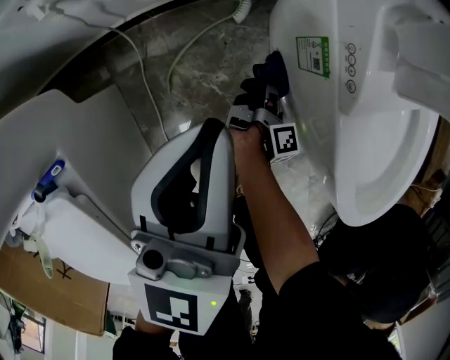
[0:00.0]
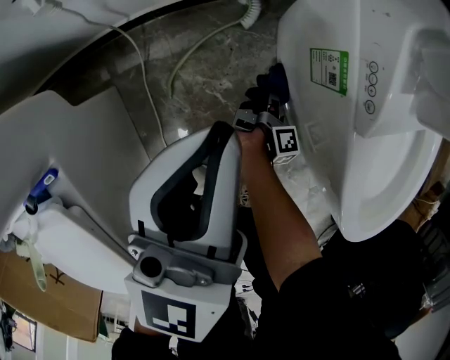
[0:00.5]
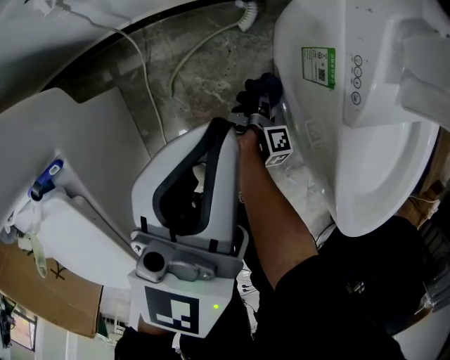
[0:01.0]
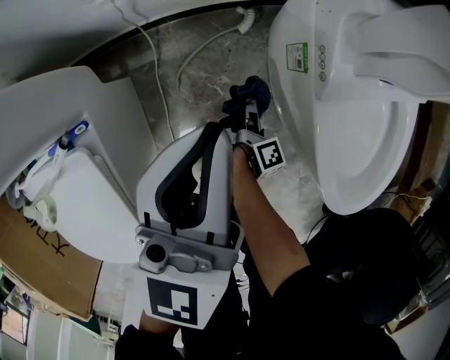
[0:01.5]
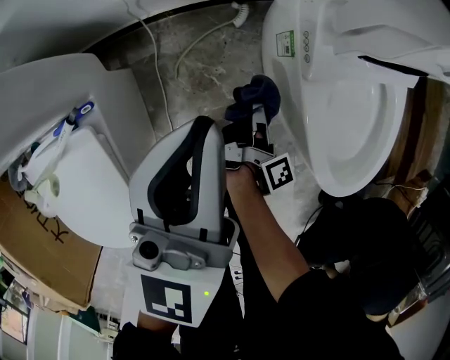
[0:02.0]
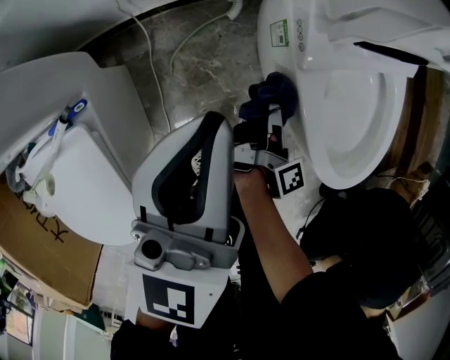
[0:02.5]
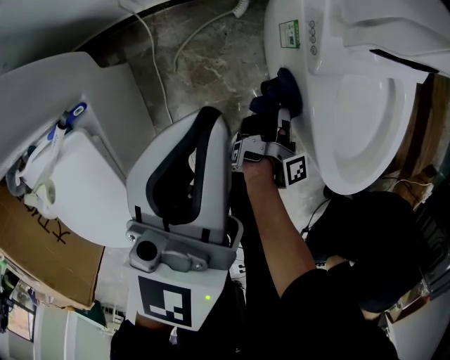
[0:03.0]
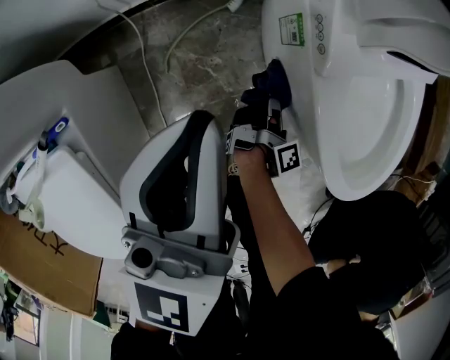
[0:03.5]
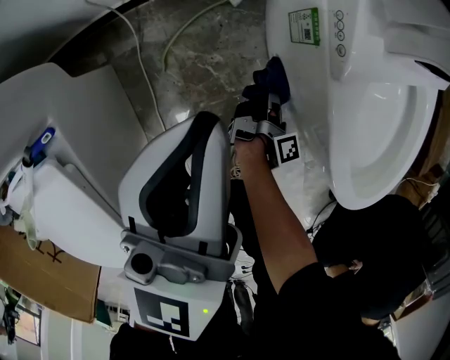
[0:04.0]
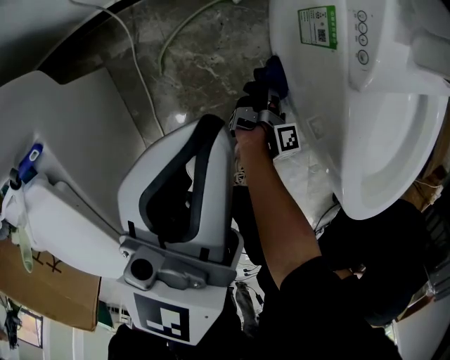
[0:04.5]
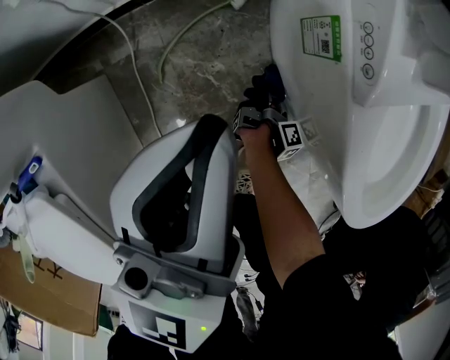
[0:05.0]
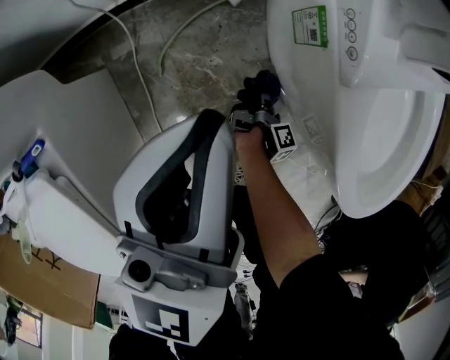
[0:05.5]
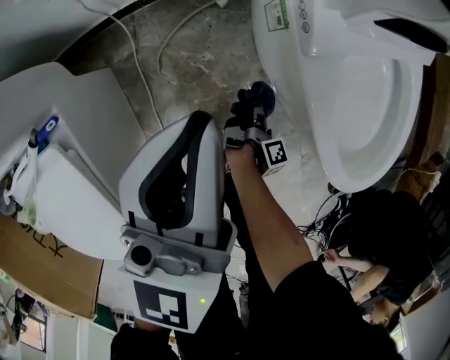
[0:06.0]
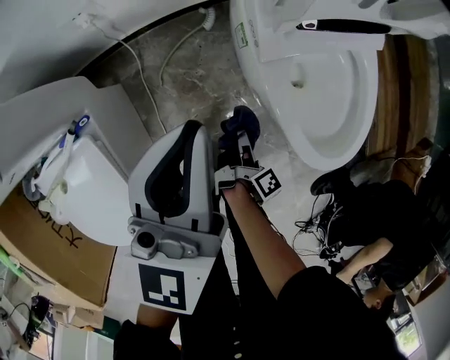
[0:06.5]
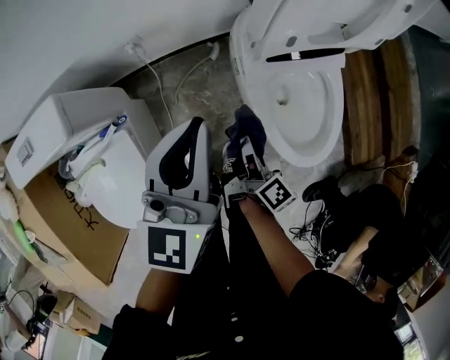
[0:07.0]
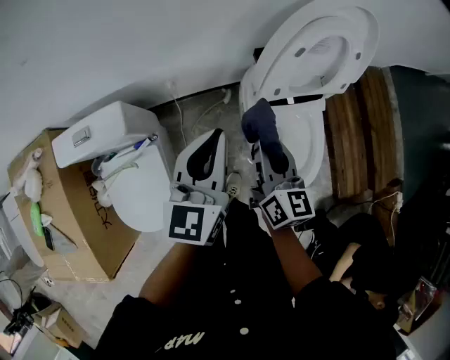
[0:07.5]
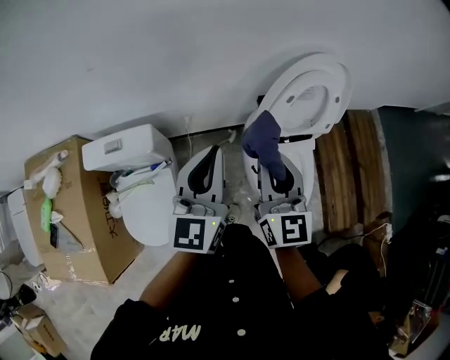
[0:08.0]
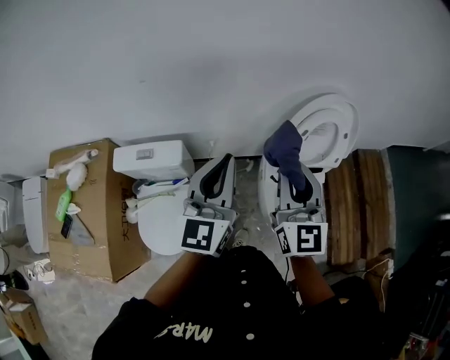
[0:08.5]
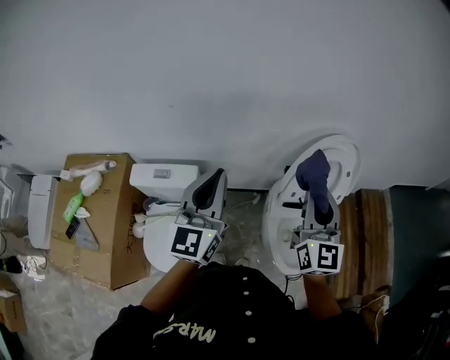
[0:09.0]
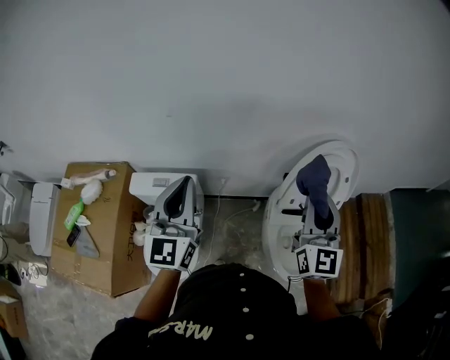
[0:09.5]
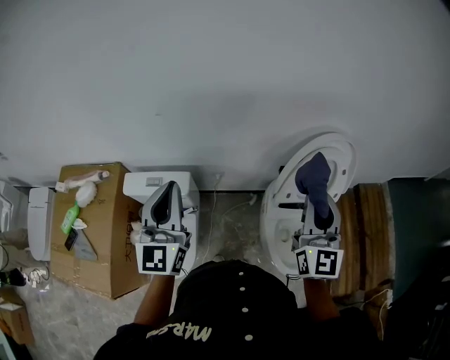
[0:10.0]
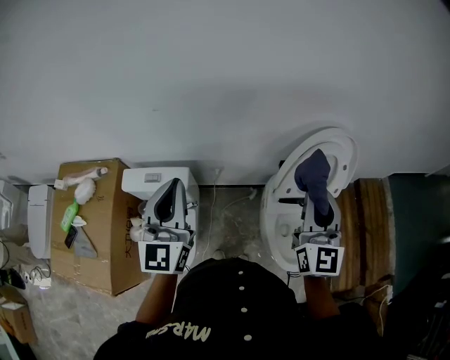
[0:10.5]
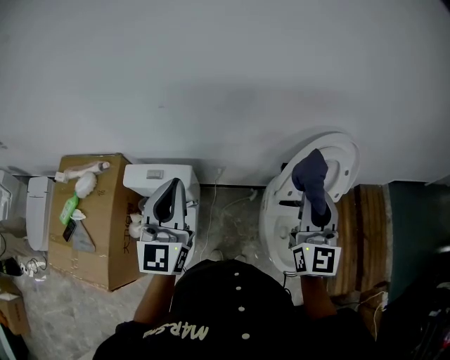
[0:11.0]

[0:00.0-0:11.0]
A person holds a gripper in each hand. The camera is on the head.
0:00.0 to 0:02.0: The left gripper goes some 15 cm upward. The right gripper is displaced upward by roughly 20 cm.
0:02.0 to 0:03.5: The left gripper shifts roughly 5 cm downward, while the right gripper moves downward and to the right, approximately 10 cm.
0:03.5 to 0:05.5: The right gripper goes roughly 15 cm downward, and turns by approximately 20 degrees. Meanwhile the left gripper moves downward, about 5 cm.
0:05.5 to 0:07.5: The right gripper travels upward by approximately 80 cm, and twists about 80 degrees counterclockwise, seen from behind. The left gripper heads upward, covering roughly 40 cm.
0:07.5 to 0:09.0: The right gripper shifts some 35 cm upward, and rotates approximately 30 degrees. Meanwhile the left gripper goes some 30 cm upward and to the left, and rotates roughly 30 degrees.
0:09.0 to 0:11.0: The left gripper travels to the left by approximately 5 cm.

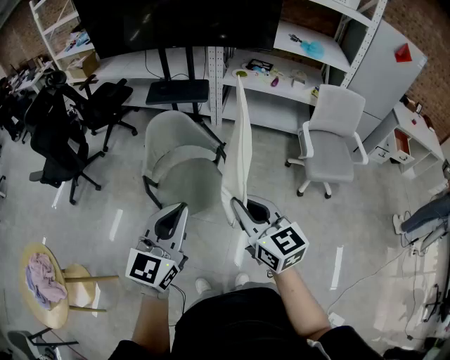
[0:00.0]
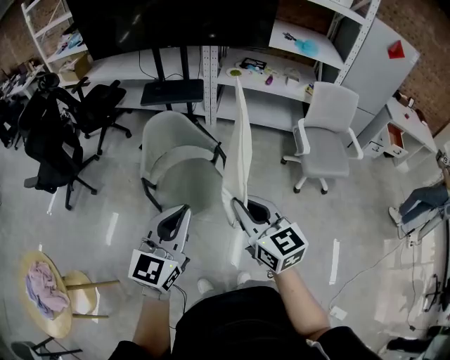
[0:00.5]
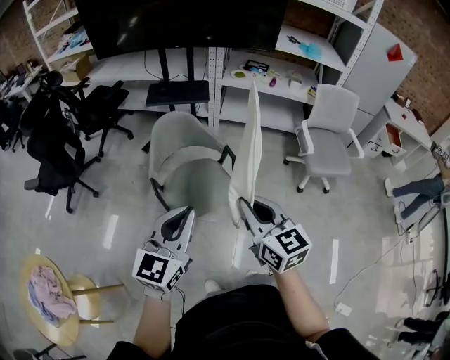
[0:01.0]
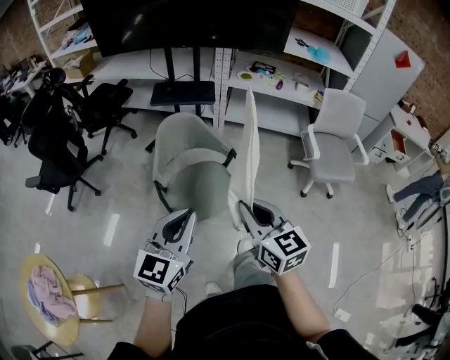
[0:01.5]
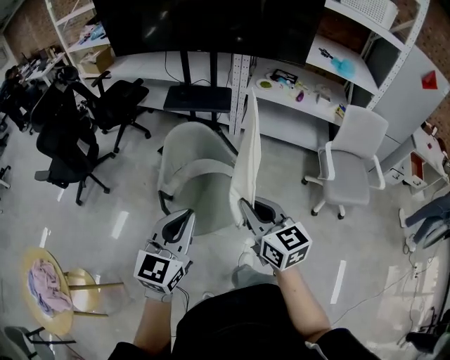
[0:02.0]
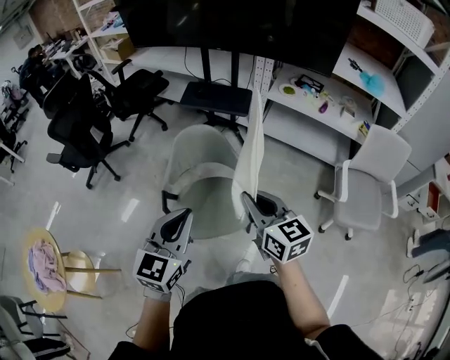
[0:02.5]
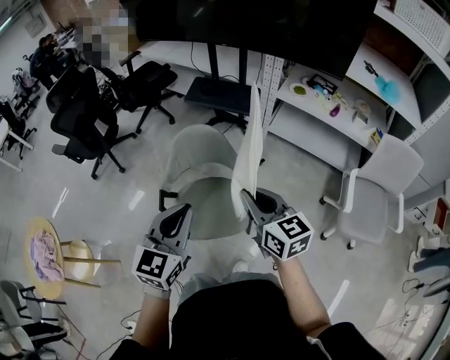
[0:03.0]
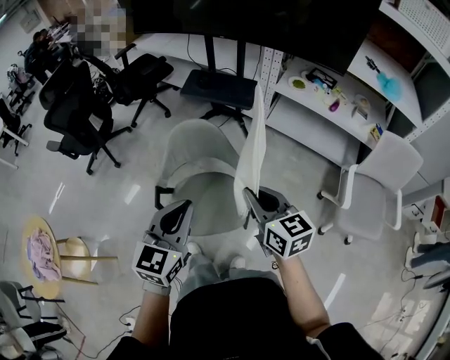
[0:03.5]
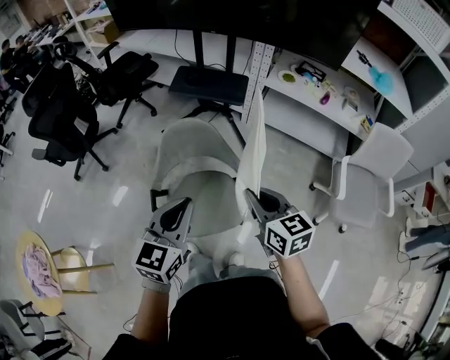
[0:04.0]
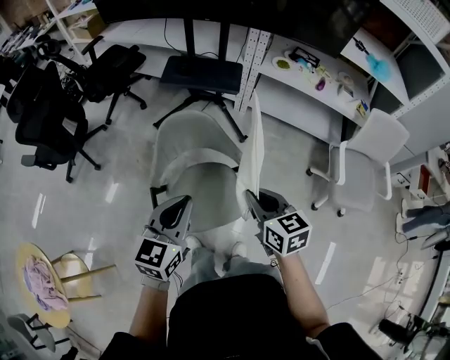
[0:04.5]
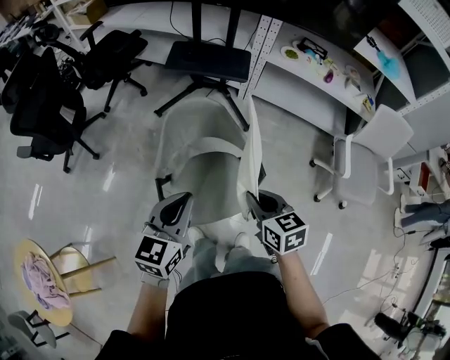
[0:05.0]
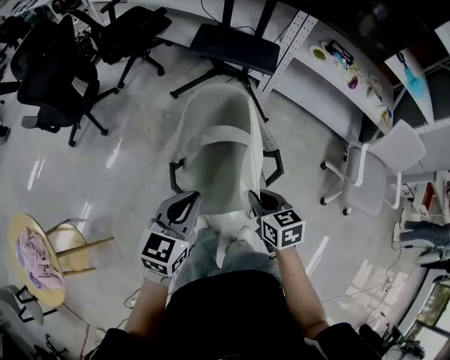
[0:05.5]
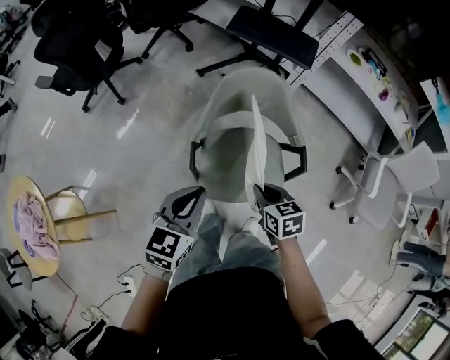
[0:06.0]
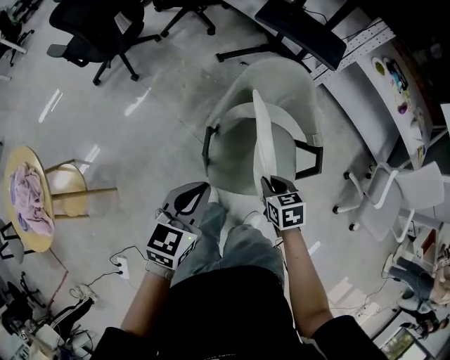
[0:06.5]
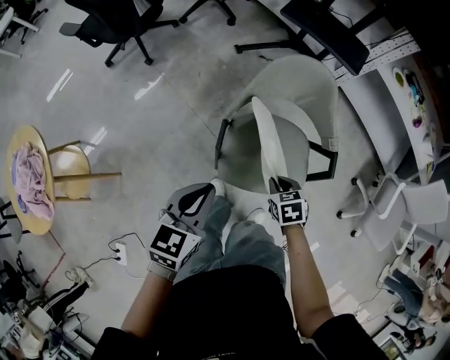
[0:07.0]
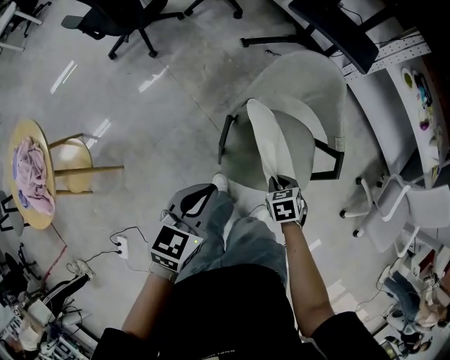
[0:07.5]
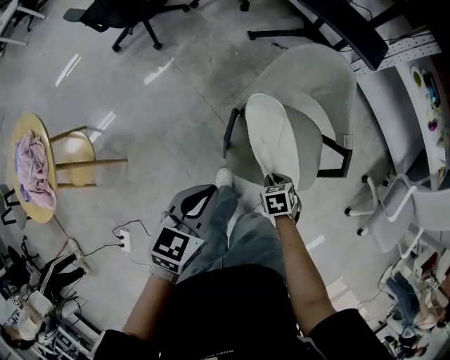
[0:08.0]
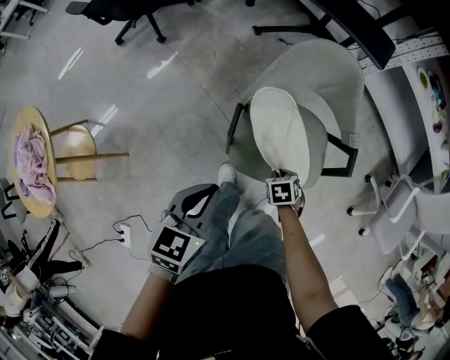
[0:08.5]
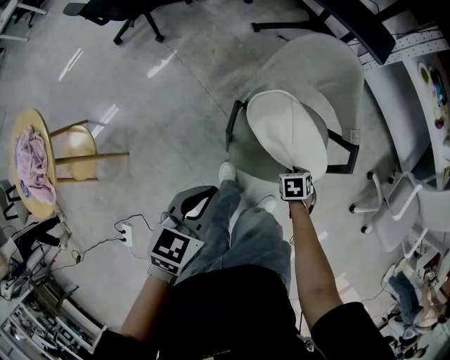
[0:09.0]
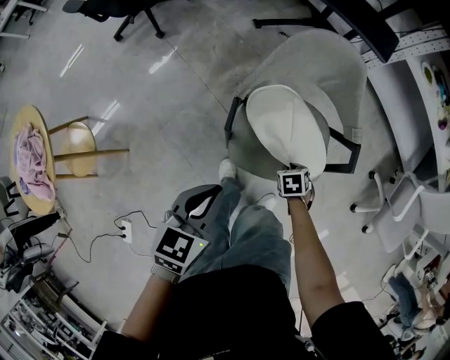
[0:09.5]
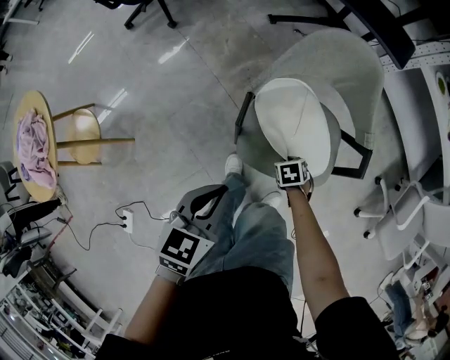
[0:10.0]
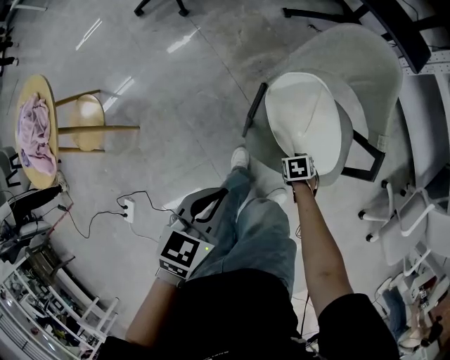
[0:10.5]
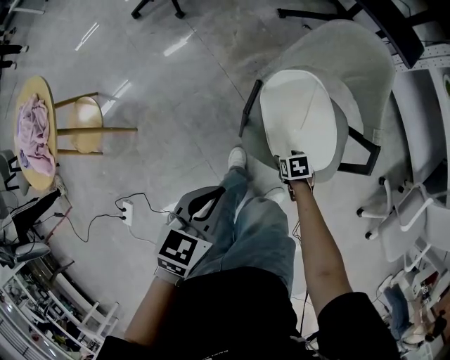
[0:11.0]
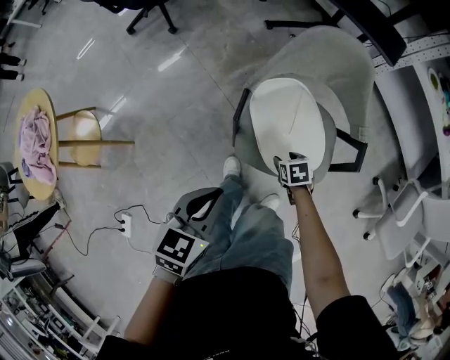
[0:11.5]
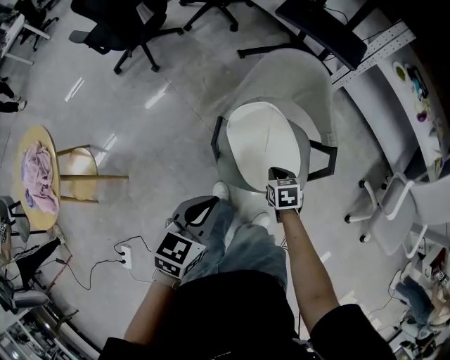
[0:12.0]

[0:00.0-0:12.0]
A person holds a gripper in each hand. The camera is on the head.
0:00.0 to 0:02.0: Both grippers move forward and to the left, roughly 15 cm.
0:02.0 to 0:04.0: The left gripper moves forward, approximately 15 cm; the right gripper goes approximately 15 cm forward and to the right.
0:04.0 to 0:06.0: The right gripper is displaced downward and to the left by roughly 25 cm, and swivels about 30 degrees; the left gripper is displaced to the left and downward by roughly 20 cm.
0:06.0 to 0:08.0: The left gripper changes place by approximately 10 cm. The right gripper is displaced downward by some 20 cm, and swivels some 30 degrees.
0:08.0 to 0:10.0: The right gripper is displaced downward by approximately 10 cm.
0:10.0 to 0:12.0: The left gripper moves approximately 5 cm; the right gripper goes some 15 cm upward, turns by roughly 20 degrees, and opens, then closes once more.

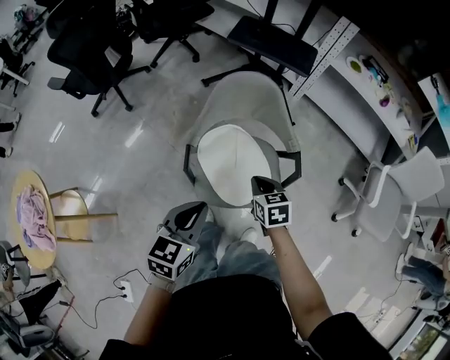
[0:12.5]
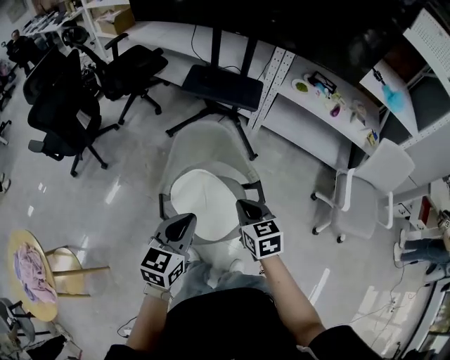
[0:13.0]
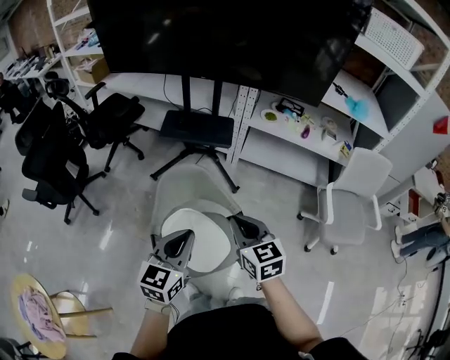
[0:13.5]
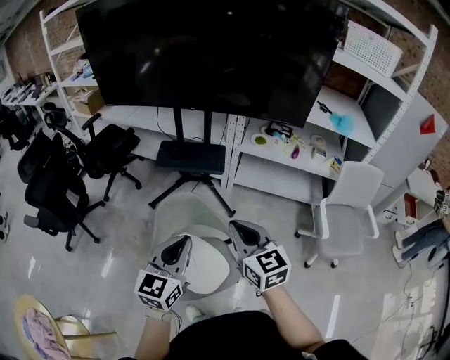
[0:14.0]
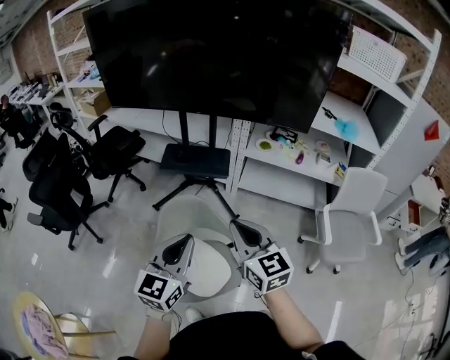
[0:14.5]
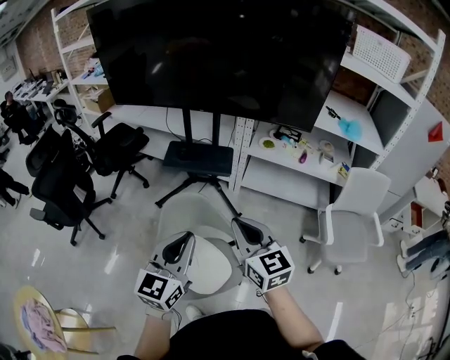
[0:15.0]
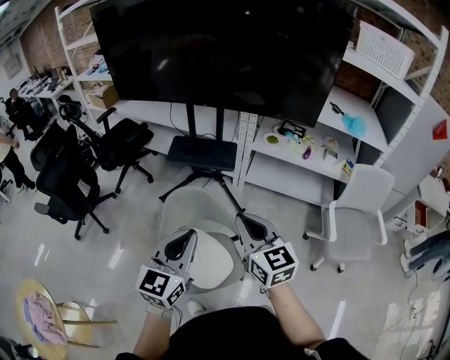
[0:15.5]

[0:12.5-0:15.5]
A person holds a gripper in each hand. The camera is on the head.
0:12.5 to 0:14.0: The left gripper moves upward, forward and to the right, some 25 cm, and changes its angle by about 30 degrees, while the right gripper travels upward by some 35 cm, and points its fingers approximately 40 degrees further upward.
0:14.0 to 0:15.5: The grippers move only a little.
